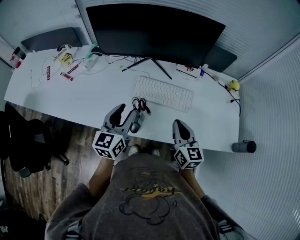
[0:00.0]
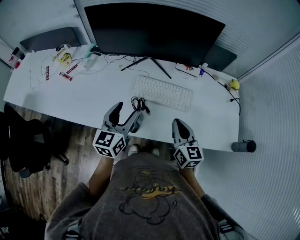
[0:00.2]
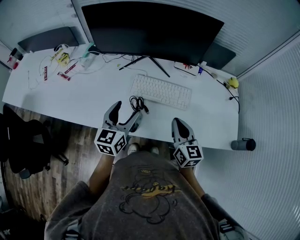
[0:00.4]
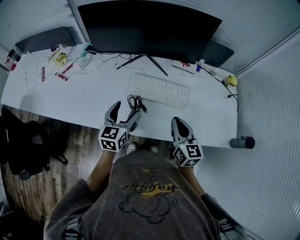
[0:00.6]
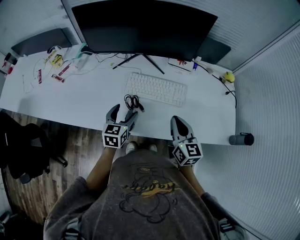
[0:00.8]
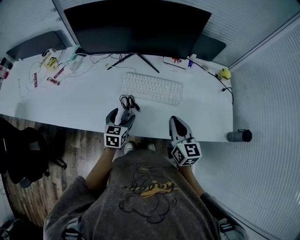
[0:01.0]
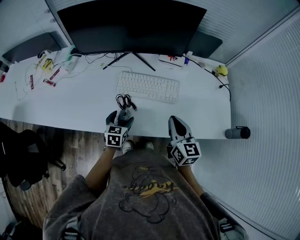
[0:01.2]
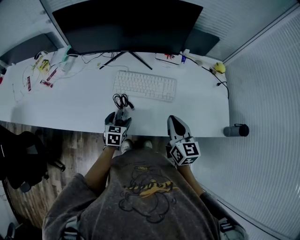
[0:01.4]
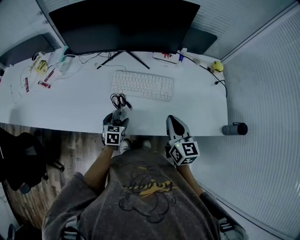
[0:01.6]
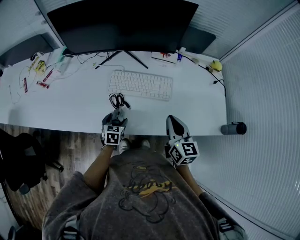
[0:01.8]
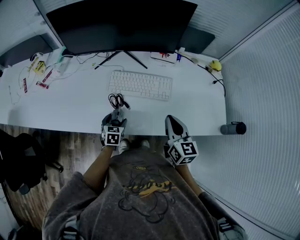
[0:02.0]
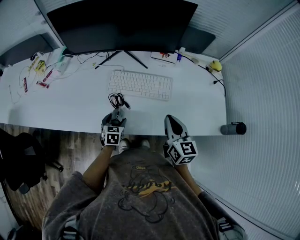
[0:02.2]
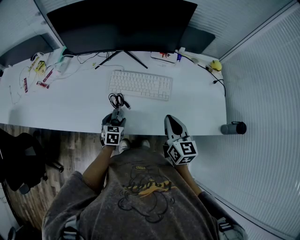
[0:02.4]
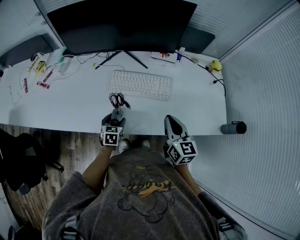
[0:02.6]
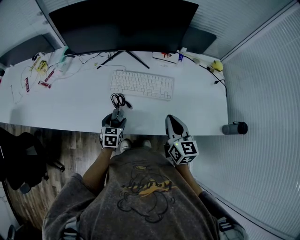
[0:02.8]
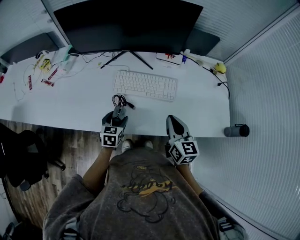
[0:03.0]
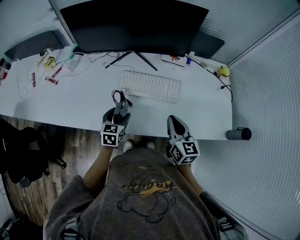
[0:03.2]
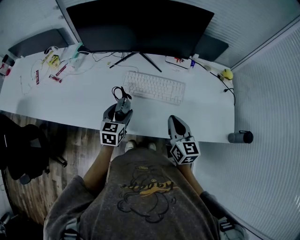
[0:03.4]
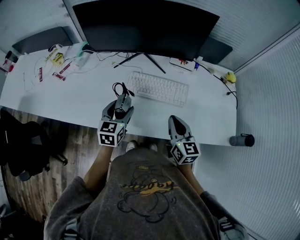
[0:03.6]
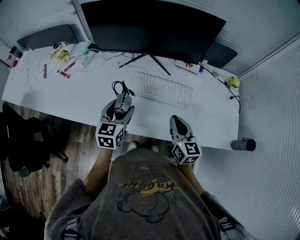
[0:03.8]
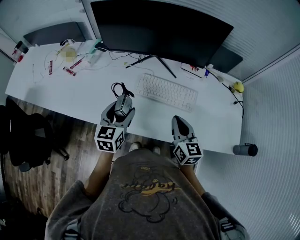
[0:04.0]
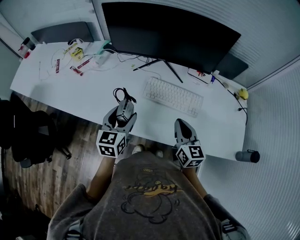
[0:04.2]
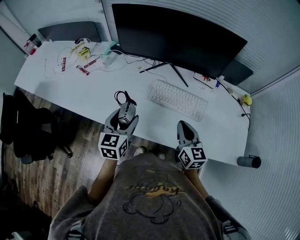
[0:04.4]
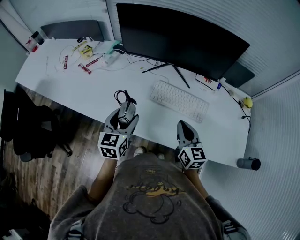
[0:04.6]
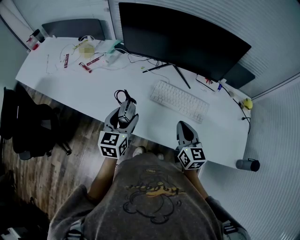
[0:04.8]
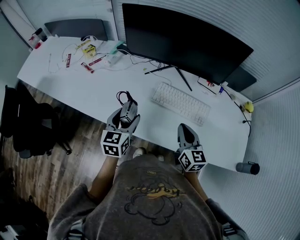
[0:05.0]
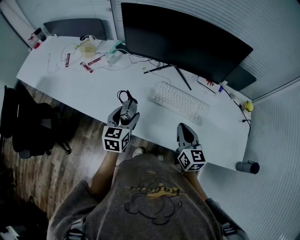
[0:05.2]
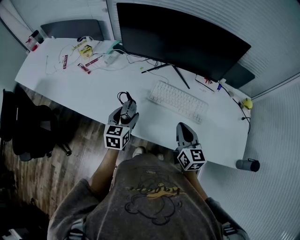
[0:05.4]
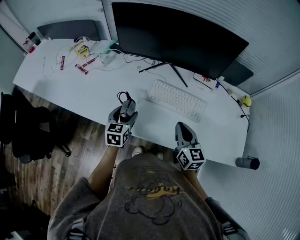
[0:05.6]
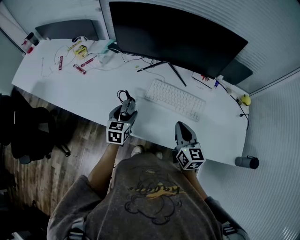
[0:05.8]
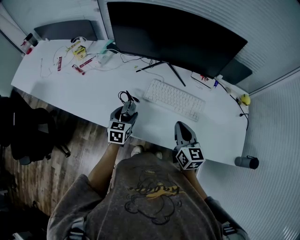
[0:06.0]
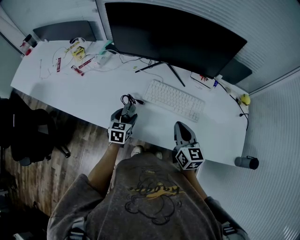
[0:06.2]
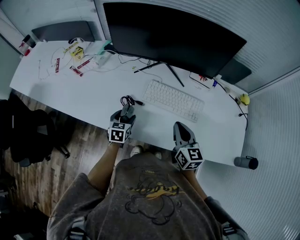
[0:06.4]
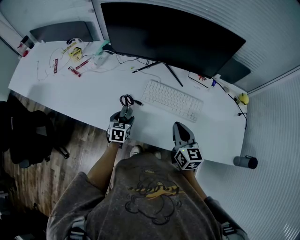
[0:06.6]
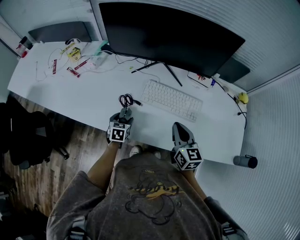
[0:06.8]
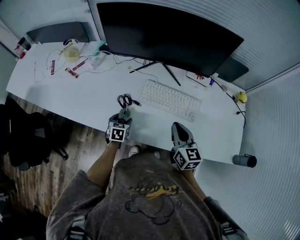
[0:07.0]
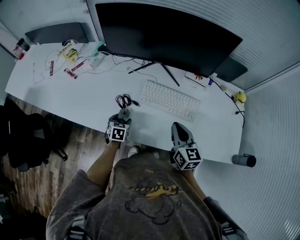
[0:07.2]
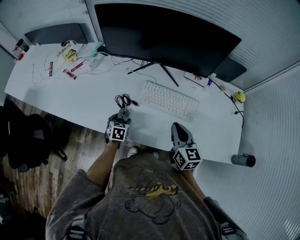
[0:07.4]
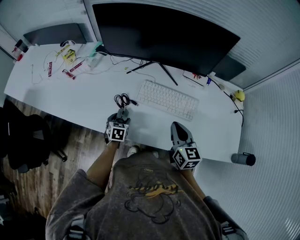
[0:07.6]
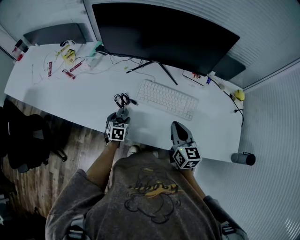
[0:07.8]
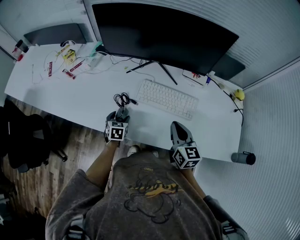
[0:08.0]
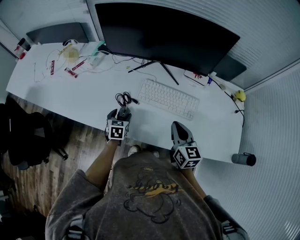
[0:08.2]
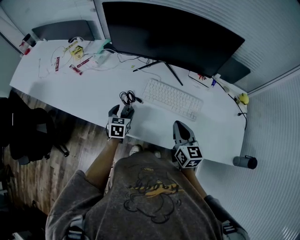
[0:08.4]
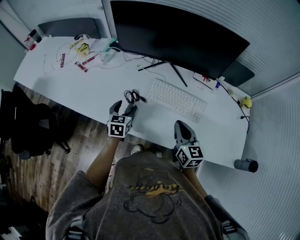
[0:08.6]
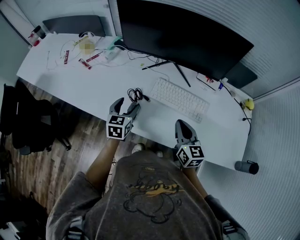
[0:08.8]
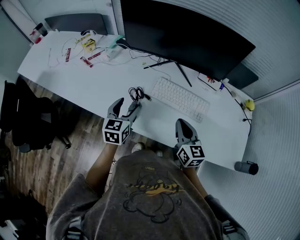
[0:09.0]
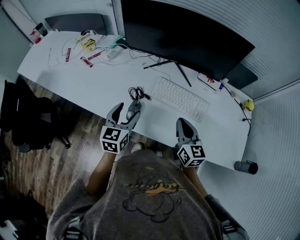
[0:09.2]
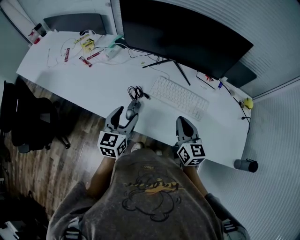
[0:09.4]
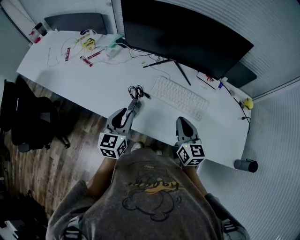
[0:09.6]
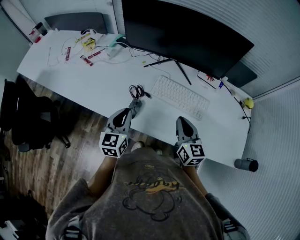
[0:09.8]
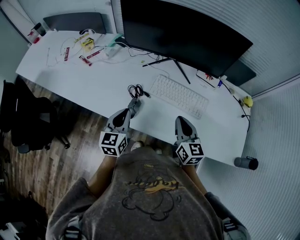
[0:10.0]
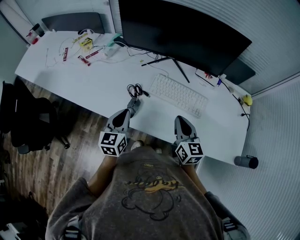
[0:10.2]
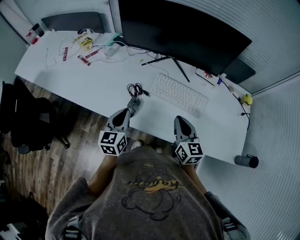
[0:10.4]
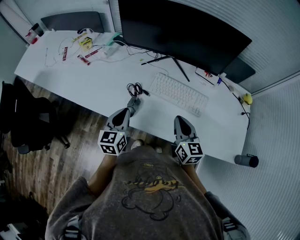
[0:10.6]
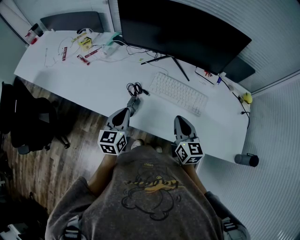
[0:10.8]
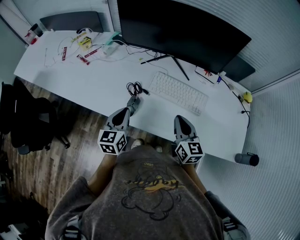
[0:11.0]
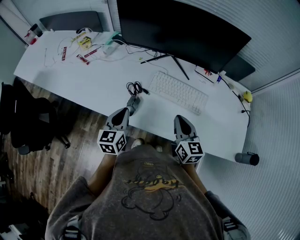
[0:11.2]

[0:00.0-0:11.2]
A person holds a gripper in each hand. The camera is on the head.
0:00.0 to 0:01.6: The left gripper goes approximately 25 cm downward, tilts its fingers about 40 degrees downward, and opens. Meanwhile the right gripper shifts some 5 cm to the right.
0:01.6 to 0:03.2: The left gripper shifts about 10 cm upward.
0:03.2 to 0:04.8: The right gripper moves to the left, about 10 cm; the left gripper goes approximately 15 cm upward and to the left, and swivels approximately 20 degrees.
0:04.8 to 0:06.4: The left gripper heads downward, covering some 15 cm, and changes its angle by some 20 degrees.
0:06.4 to 0:08.0: The grippers make only small movements.
0:08.0 to 0:09.6: The left gripper moves upward, some 20 cm, angles its fingers upward, by some 30 degrees, and closes its fingers.
0:09.6 to 0:11.2: The grippers stay close to where they were, moving slightly.

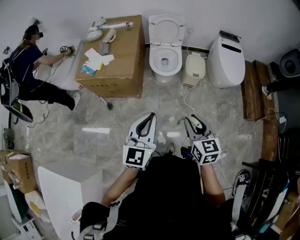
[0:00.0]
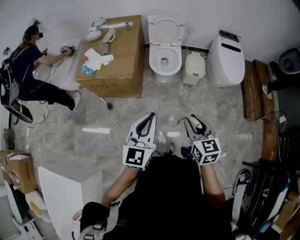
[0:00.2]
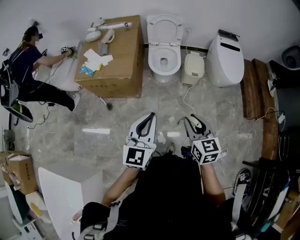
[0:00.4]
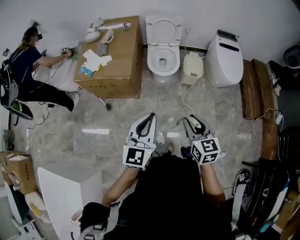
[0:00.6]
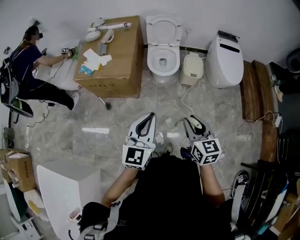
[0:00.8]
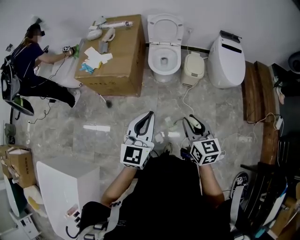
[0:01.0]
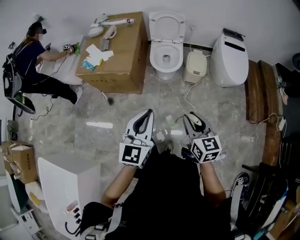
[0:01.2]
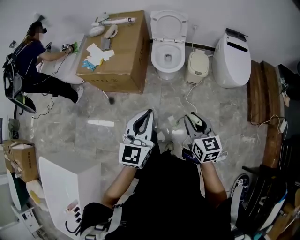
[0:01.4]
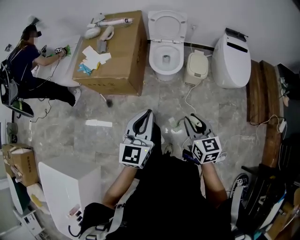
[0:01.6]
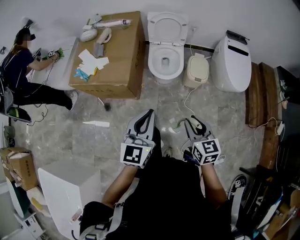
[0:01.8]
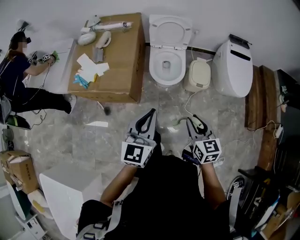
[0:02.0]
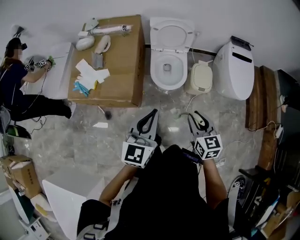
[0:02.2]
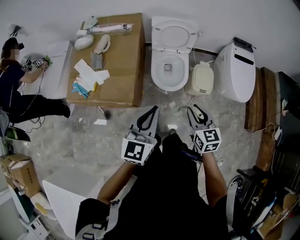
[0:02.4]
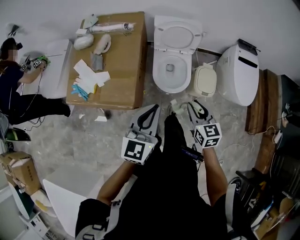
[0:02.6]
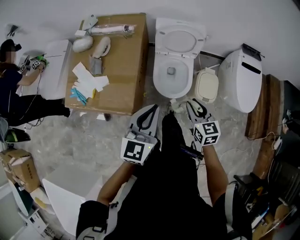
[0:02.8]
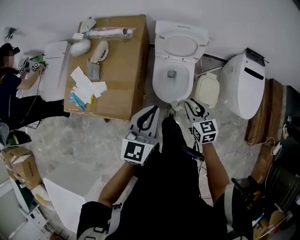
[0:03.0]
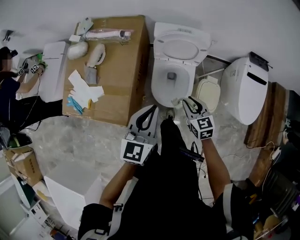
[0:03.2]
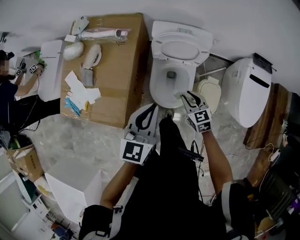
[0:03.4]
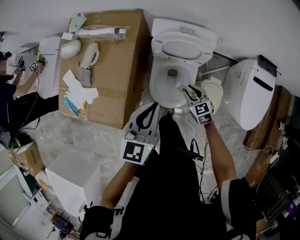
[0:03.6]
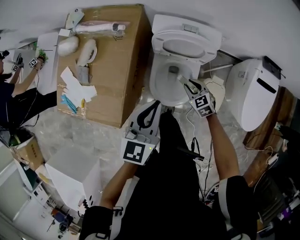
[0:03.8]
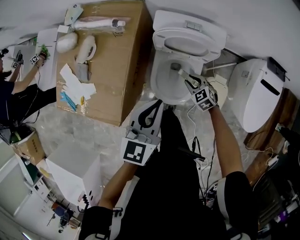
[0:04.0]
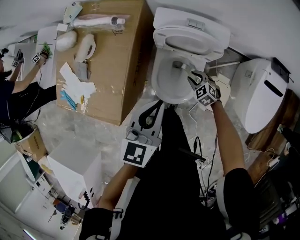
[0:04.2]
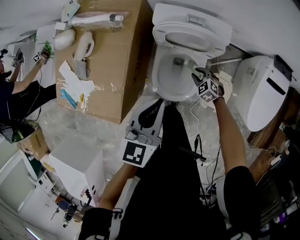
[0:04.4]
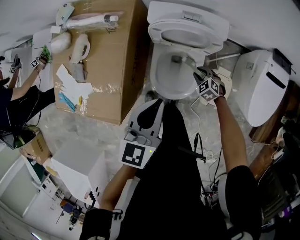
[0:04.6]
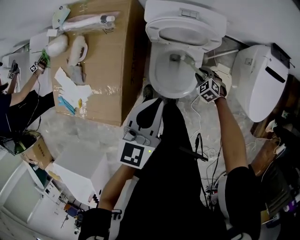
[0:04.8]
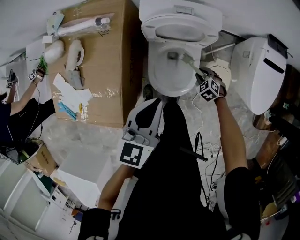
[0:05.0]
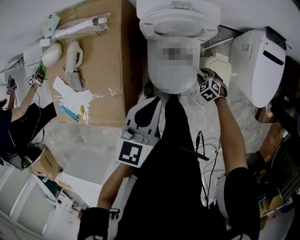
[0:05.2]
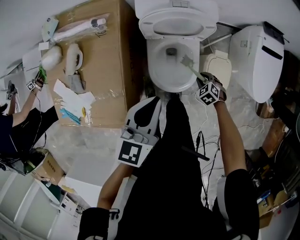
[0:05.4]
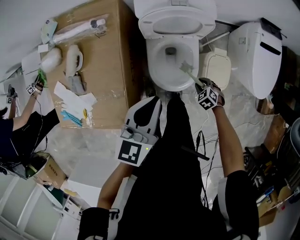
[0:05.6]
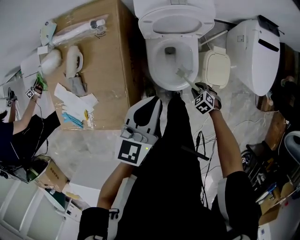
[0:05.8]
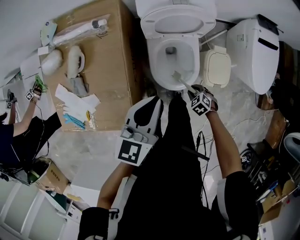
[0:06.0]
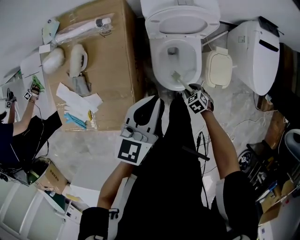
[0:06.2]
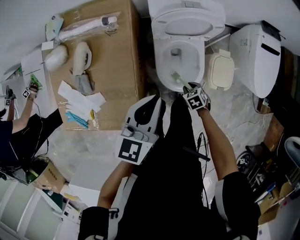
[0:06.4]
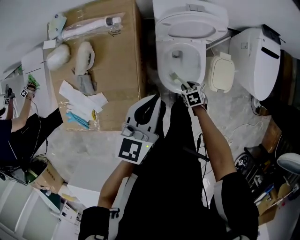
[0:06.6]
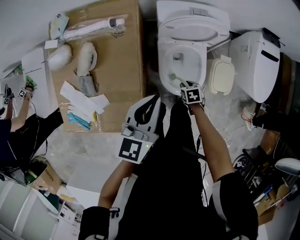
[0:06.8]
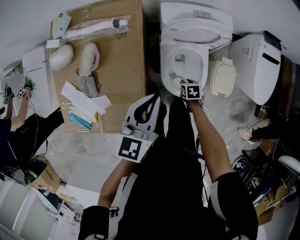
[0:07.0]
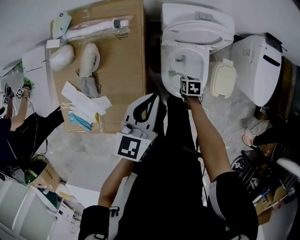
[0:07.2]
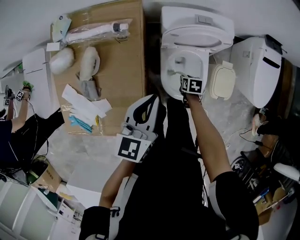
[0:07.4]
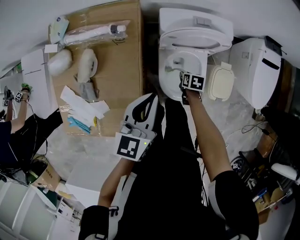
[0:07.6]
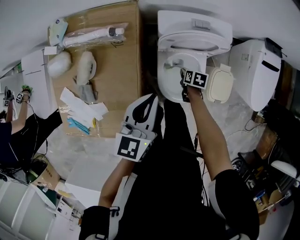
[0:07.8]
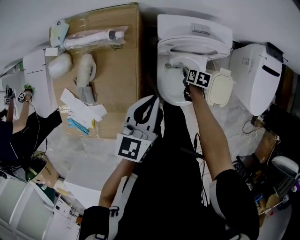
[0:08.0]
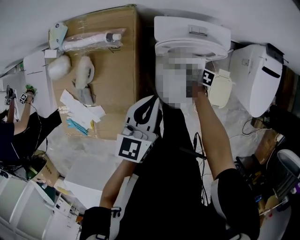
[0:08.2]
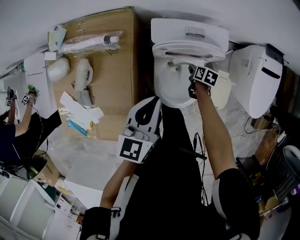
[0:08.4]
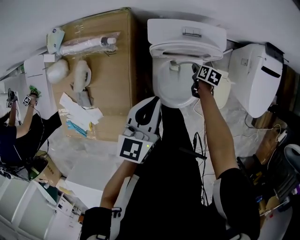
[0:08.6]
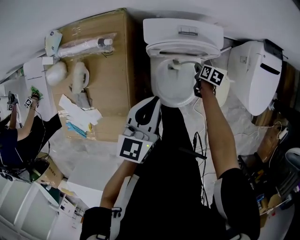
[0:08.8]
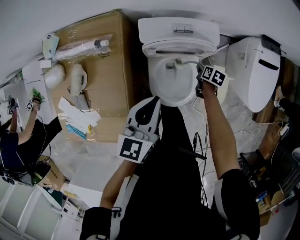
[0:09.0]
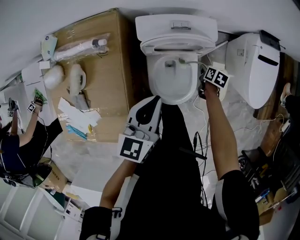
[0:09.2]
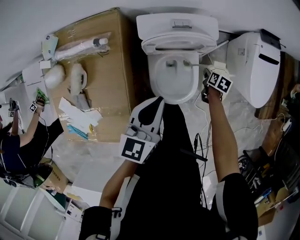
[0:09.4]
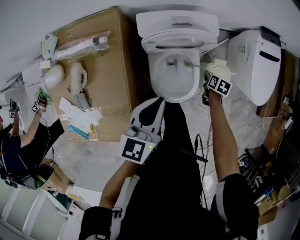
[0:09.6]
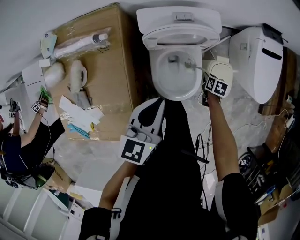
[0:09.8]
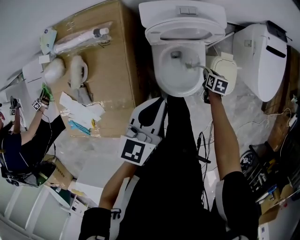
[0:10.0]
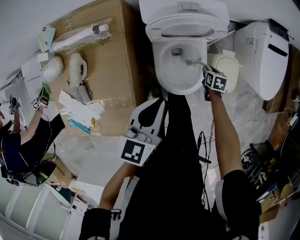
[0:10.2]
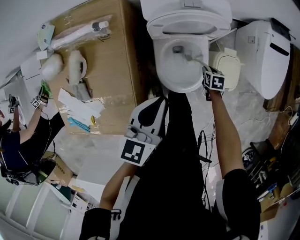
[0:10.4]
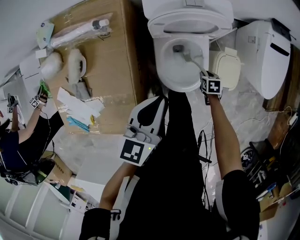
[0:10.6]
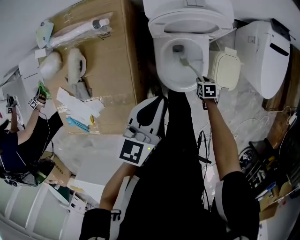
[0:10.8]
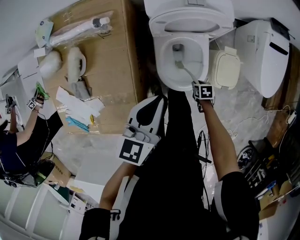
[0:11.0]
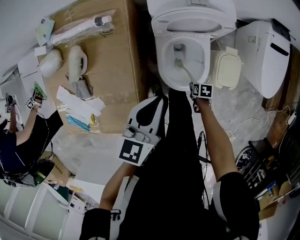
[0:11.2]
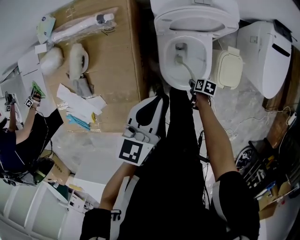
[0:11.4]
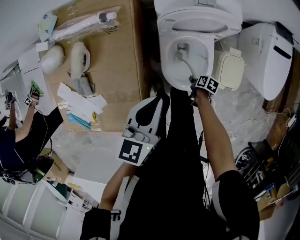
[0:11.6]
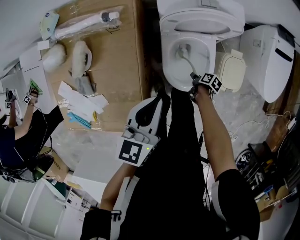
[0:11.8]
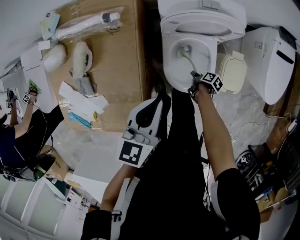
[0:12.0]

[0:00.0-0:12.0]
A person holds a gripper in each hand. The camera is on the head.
0:00.0 to 0:01.6: The grippers both shift forward and to the right by about 10 cm.
0:01.6 to 0:03.0: The two grippers travel together, forward, about 50 cm.
0:03.0 to 0:04.4: The left gripper heads forward, to the right and downward, covering some 25 cm. The right gripper goes roughly 40 cm downward and forward, and turns by some 50 degrees.
0:04.4 to 0:06.0: The right gripper changes place by roughly 20 cm, and rotates some 30 degrees. The left gripper shifts by some 10 cm.
0:06.0 to 0:07.6: The right gripper changes place by approximately 20 cm, and rotates around the line of its fingers by some 60 degrees, clockwise from behind, while the left gripper moves some 15 cm.
0:07.6 to 0:09.0: The right gripper heads to the right and forward, covering approximately 20 cm, while the left gripper is displaced to the right by approximately 10 cm.
0:09.0 to 0:10.4: The left gripper is displaced backward by about 10 cm. The right gripper moves backward and downward, approximately 15 cm, and turns by approximately 20 degrees.
0:10.4 to 0:12.0: The left gripper moves some 5 cm; the right gripper shifts by approximately 15 cm, and rolls clockwise, seen from behind, by about 60 degrees.
